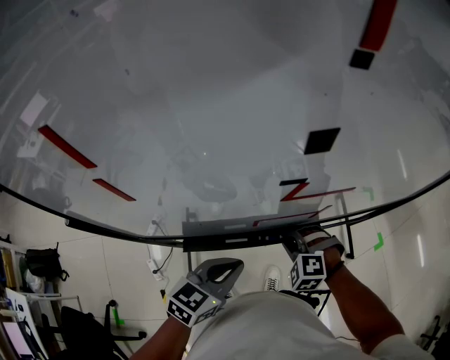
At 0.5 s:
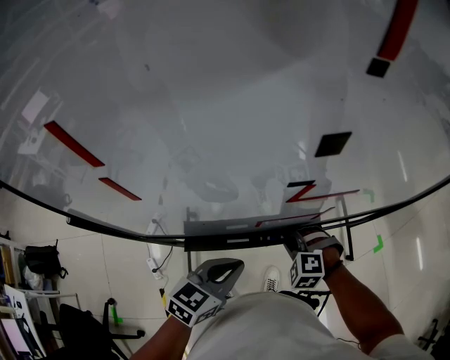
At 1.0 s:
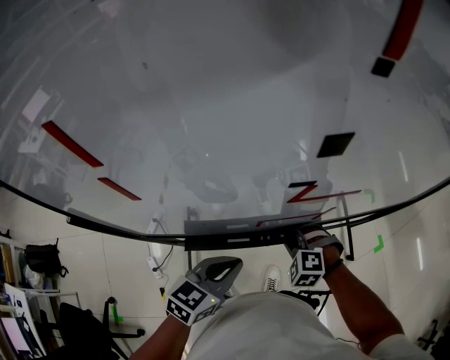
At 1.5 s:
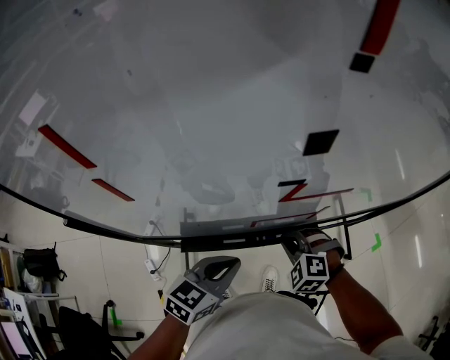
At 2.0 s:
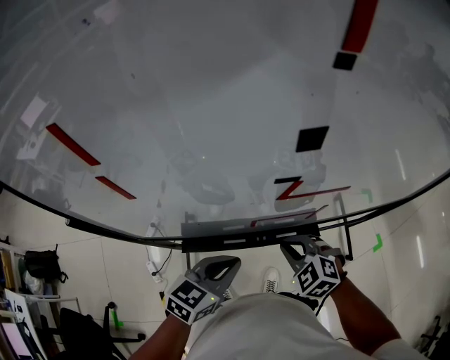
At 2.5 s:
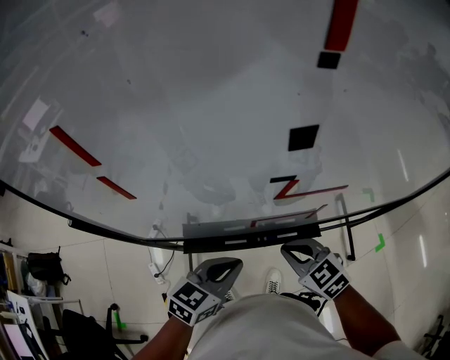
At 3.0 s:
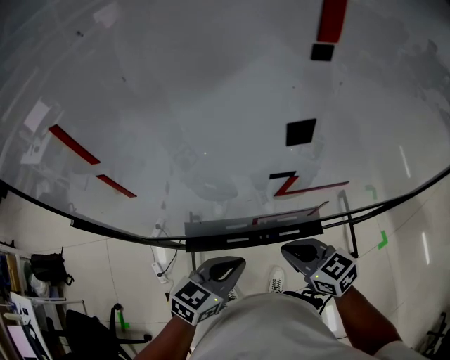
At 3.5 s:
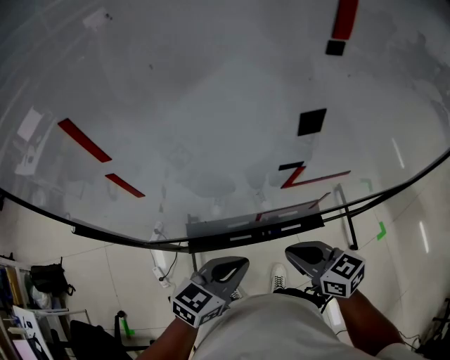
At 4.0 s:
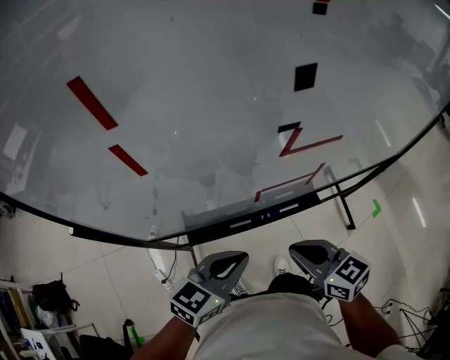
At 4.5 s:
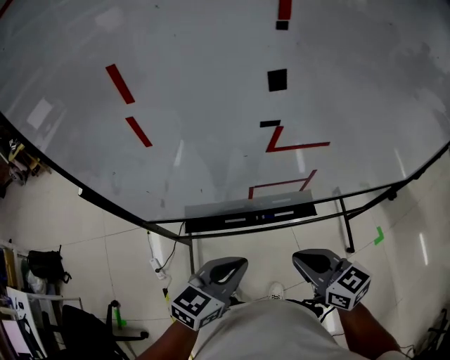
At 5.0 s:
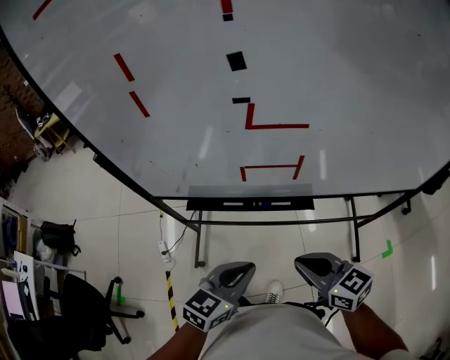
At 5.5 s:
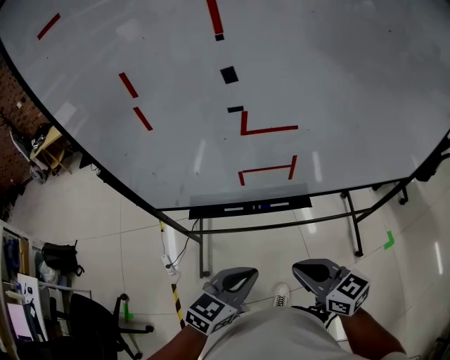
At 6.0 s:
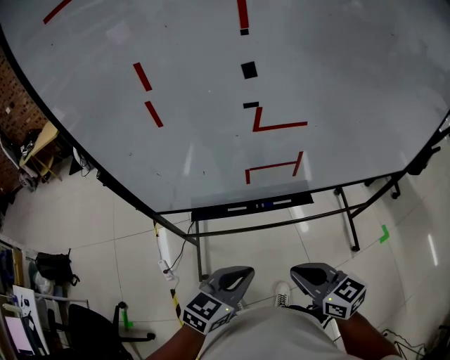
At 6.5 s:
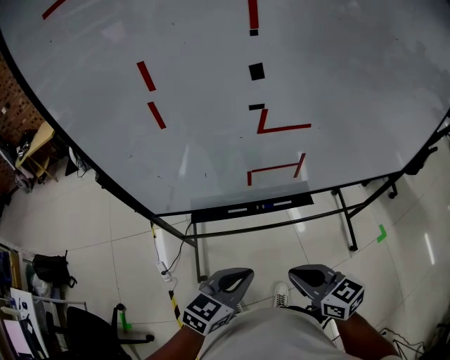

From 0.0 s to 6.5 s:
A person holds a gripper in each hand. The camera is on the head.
From 0.0 s to 2.0 s: The right gripper moves upward, some 5 cm, and swivels approximately 30 degrees.
From 2.0 s to 4.5 s: The right gripper goes about 15 cm backward and upward, and twists some 40 degrees clockwise, seen from behind. The left gripper shifts approximately 10 cm backward.
From 4.5 s to 6.5 s: Both grippers travel together backward, approximately 10 cm.

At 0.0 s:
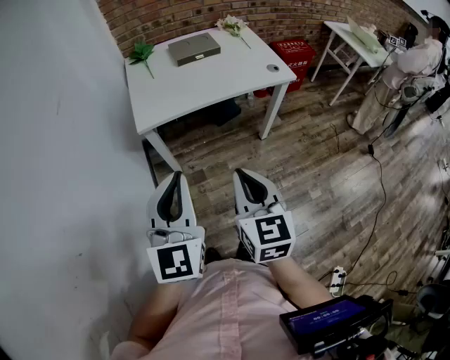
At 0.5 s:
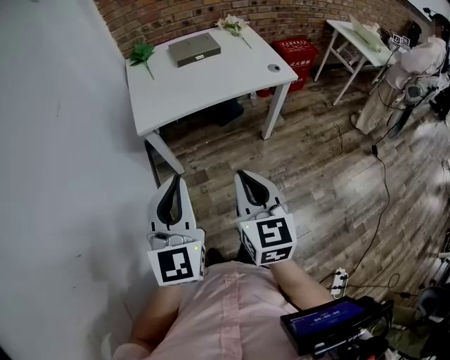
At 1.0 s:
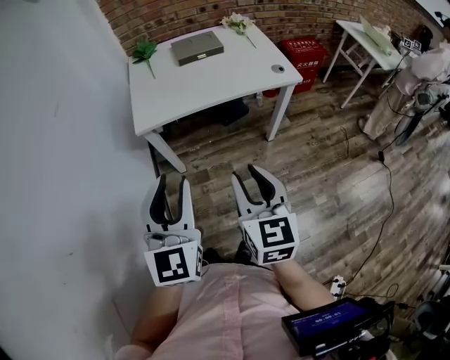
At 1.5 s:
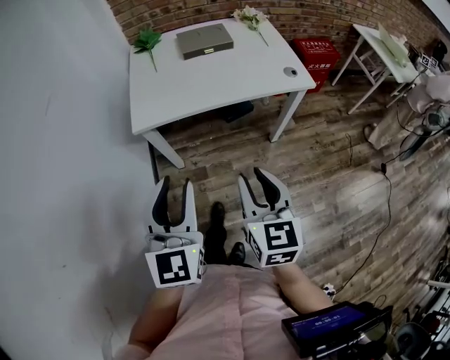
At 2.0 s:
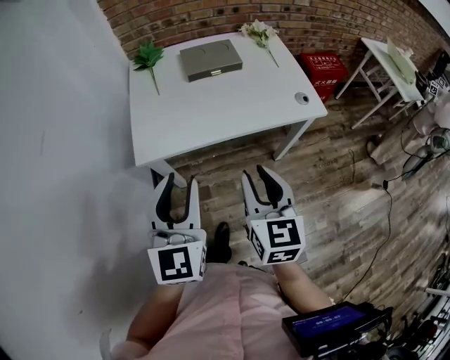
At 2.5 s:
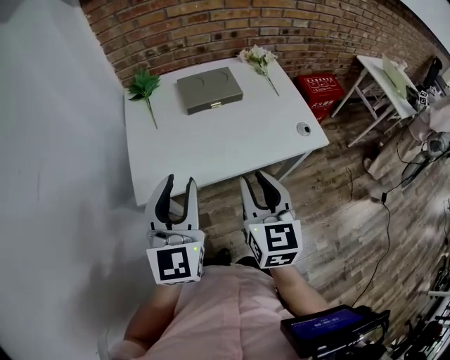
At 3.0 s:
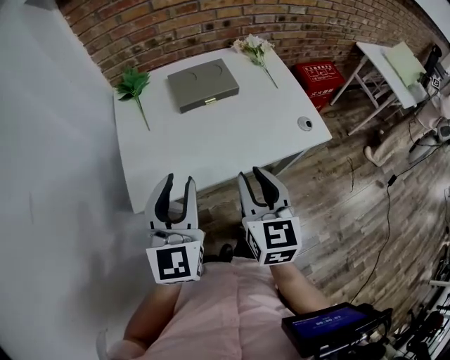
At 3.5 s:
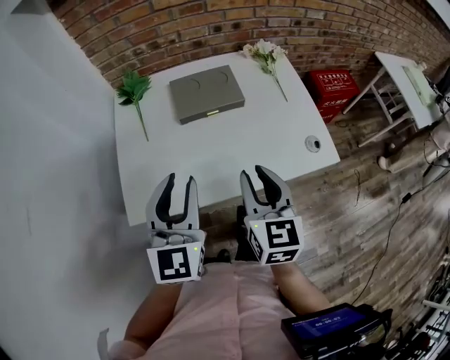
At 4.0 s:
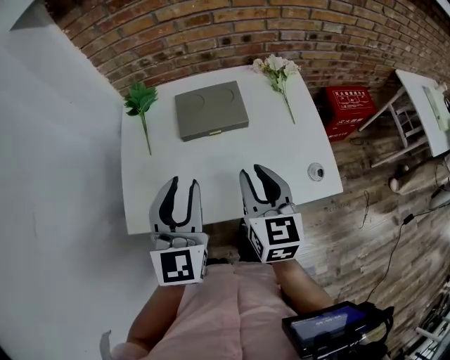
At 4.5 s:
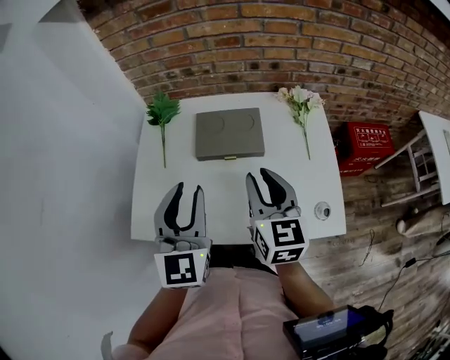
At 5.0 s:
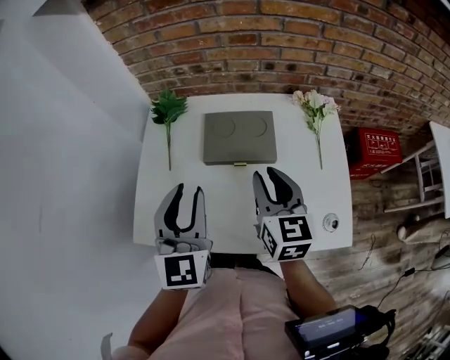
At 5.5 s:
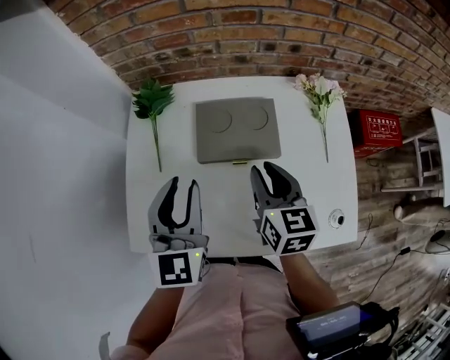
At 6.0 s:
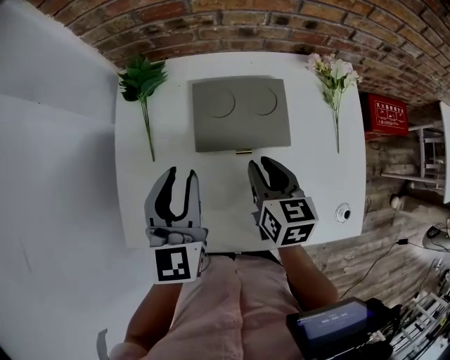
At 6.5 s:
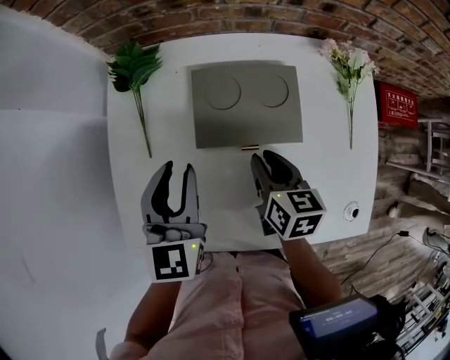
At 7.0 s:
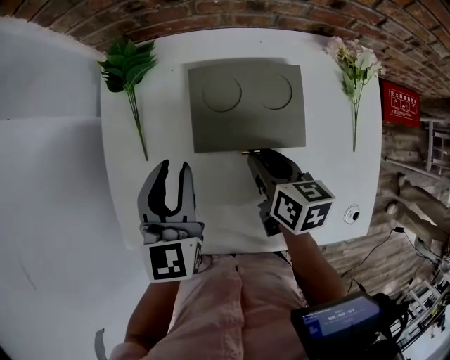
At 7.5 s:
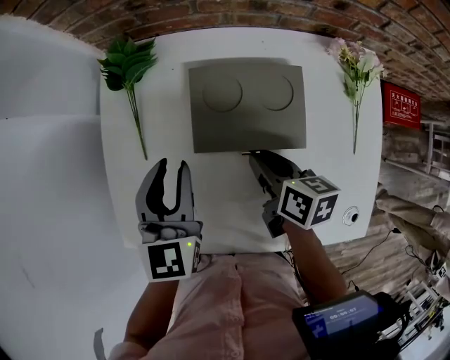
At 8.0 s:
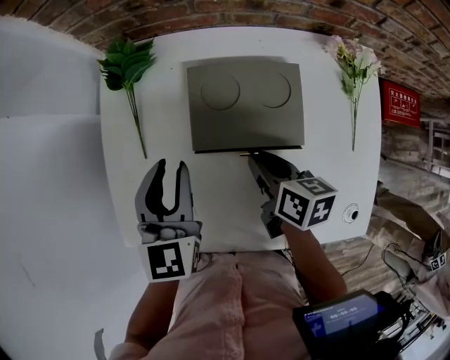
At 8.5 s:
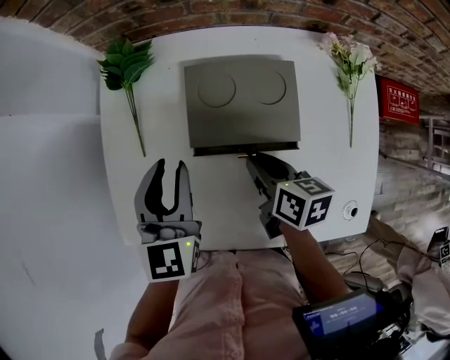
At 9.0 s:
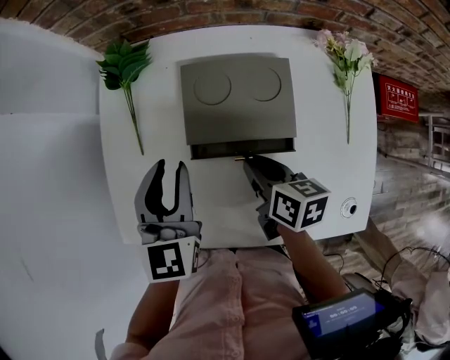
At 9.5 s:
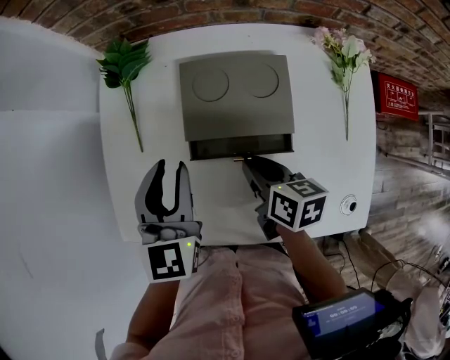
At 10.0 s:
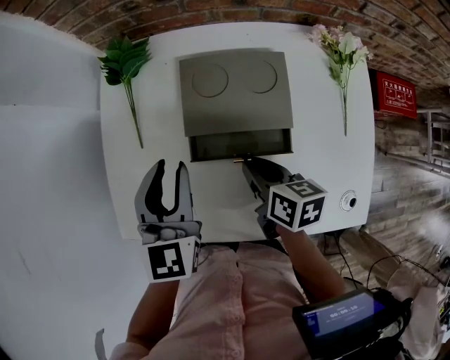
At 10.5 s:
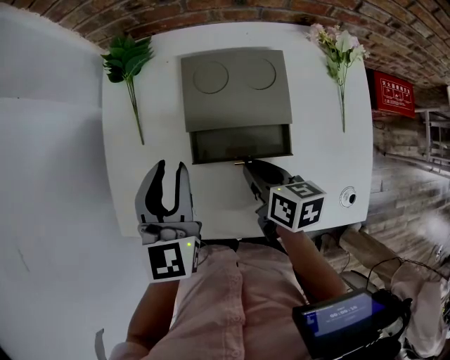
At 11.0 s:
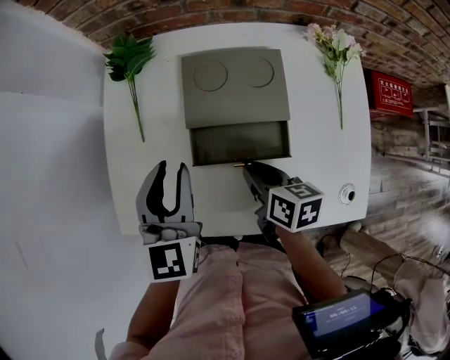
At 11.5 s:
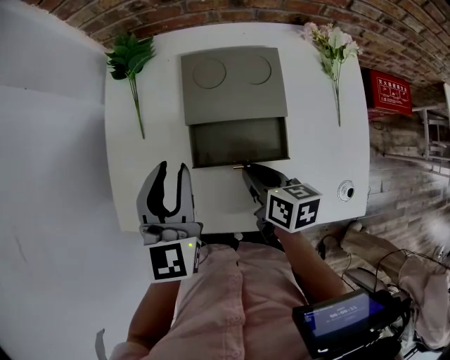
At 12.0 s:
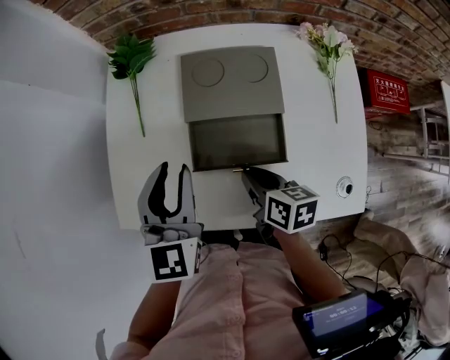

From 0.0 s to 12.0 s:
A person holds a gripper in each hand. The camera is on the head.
From 0.0 s to 2.0 s: Both grippers travel together forward, some 20 cm. The left gripper opens. The right gripper opens up.
From 2.0 s to 4.0 s: The grippers both shift forward by roughly 30 cm.
From 4.0 s to 6.0 s: The two grippers go some 20 cm forward and downward. The right gripper swivels roughly 20 degrees.
From 6.0 s to 8.0 s: Both grippers travel together downward, some 5 cm. The right gripper turns by approximately 20 degrees.
From 8.0 s to 10.0 s: The right gripper ends up roughly 5 cm from where it was.
From 10.0 s to 12.0 s: Both grippers move backward, roughly 5 cm.

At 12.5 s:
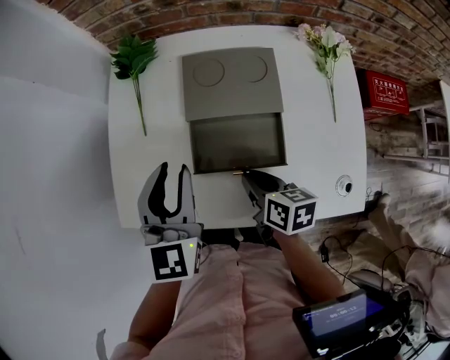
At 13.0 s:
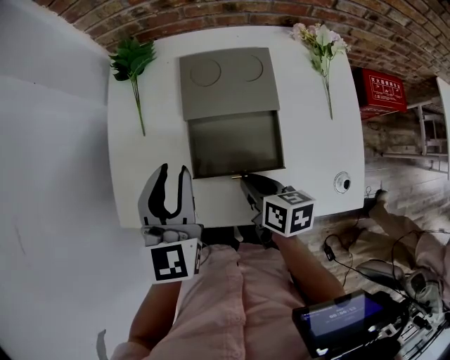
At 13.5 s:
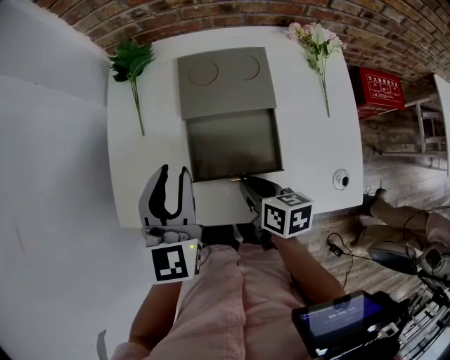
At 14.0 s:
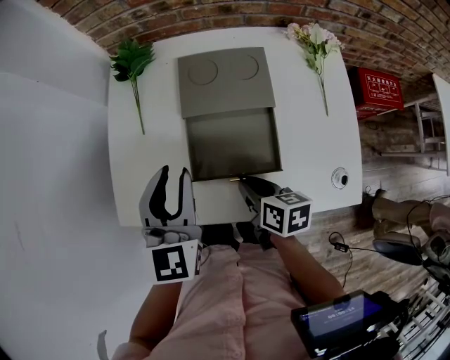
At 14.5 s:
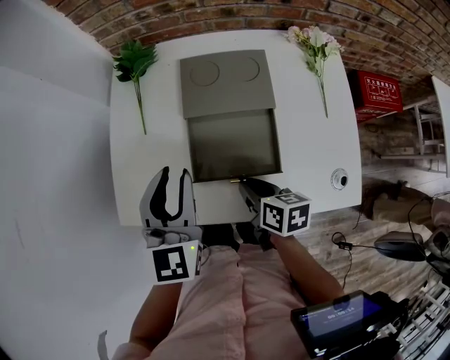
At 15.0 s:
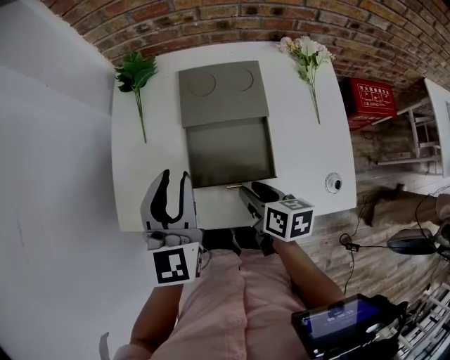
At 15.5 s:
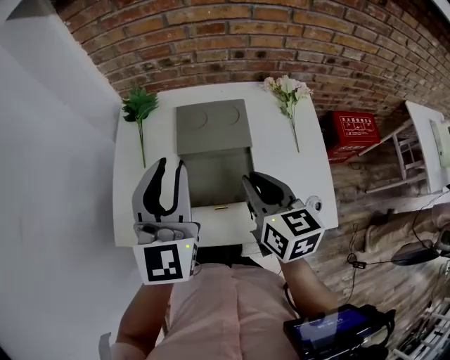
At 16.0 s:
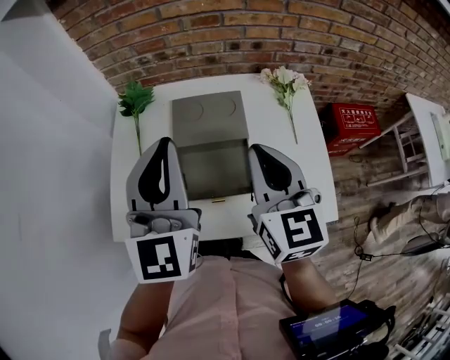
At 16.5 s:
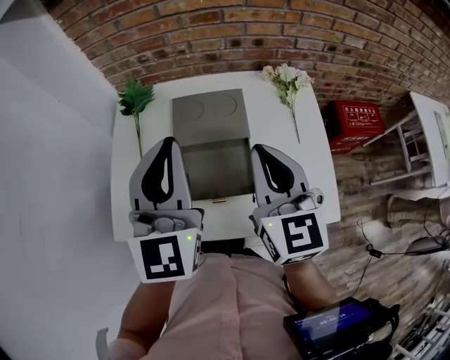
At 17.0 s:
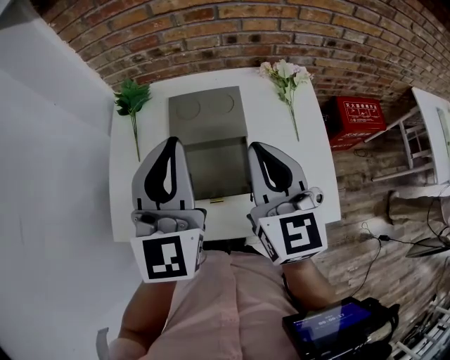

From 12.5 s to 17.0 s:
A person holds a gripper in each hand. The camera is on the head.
From 12.5 s to 14.5 s: The grippers move only a little.
From 14.5 s to 17.0 s: The right gripper is displaced upward by roughly 25 cm, points its fingers roughly 30 degrees further upward, and opens and closes again. Meanwhile the left gripper heads upward and to the right, covering some 20 cm, and closes.

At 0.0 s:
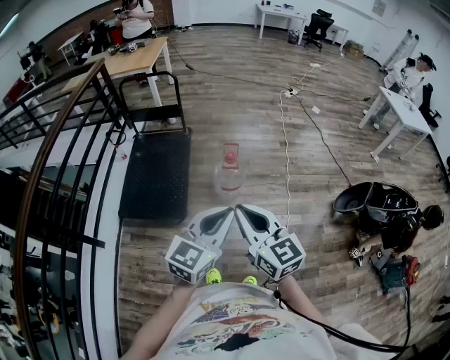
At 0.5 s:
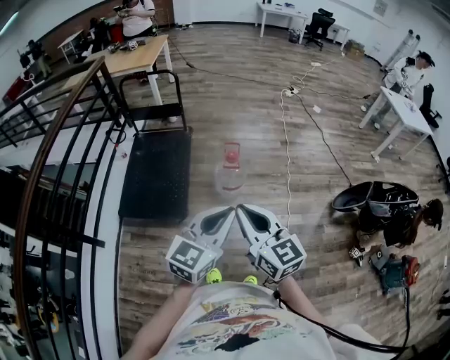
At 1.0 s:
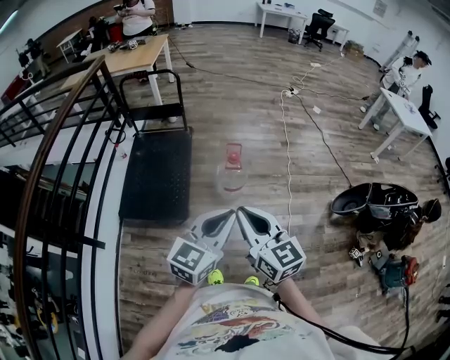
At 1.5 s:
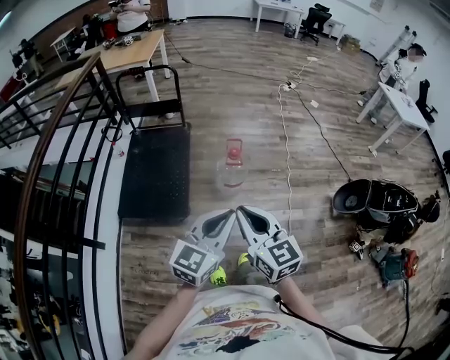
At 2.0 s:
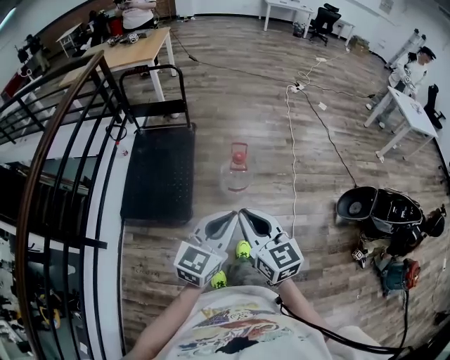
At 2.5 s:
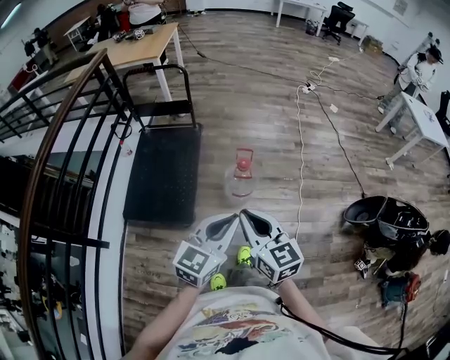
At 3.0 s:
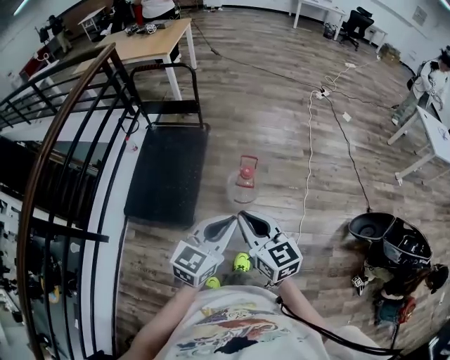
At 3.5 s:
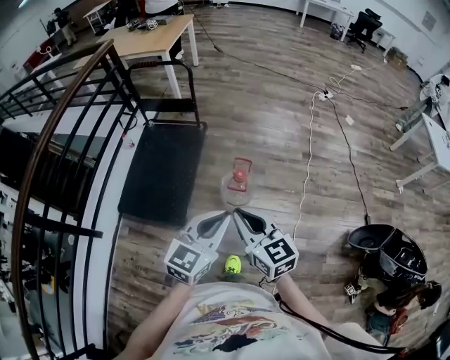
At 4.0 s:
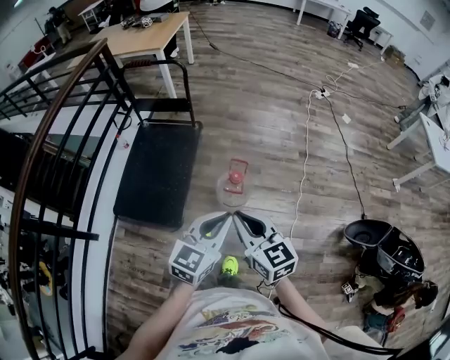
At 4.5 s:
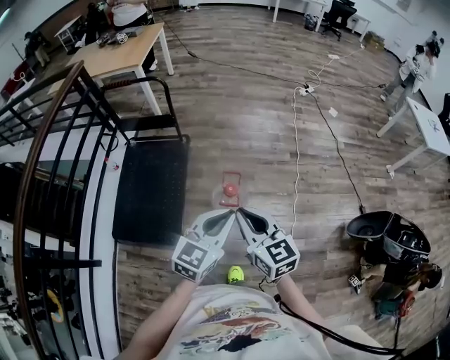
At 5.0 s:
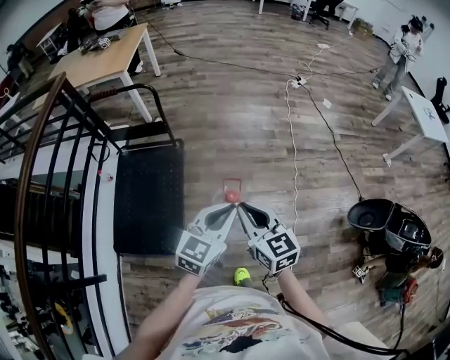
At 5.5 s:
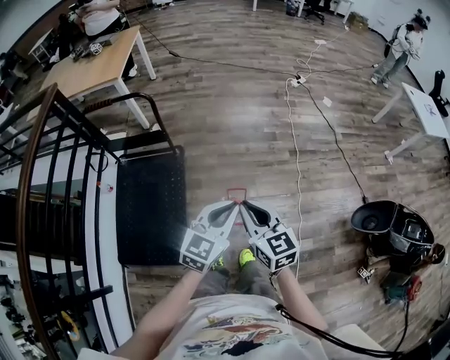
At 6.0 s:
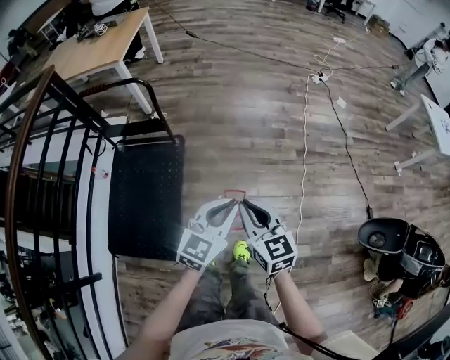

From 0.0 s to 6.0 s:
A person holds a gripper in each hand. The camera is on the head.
From 0.0 s to 2.0 s: The left gripper is displaced forward by approximately 5 cm, while the right gripper travels forward and downward by approximately 10 cm.
From 2.0 s to 4.0 s: Both grippers move forward, approximately 25 cm.
From 4.0 s to 6.0 s: The two grippers go roughly 30 cm forward.
